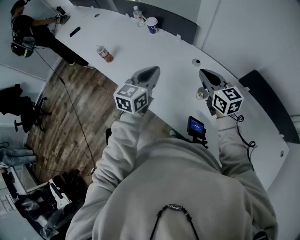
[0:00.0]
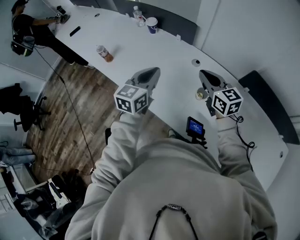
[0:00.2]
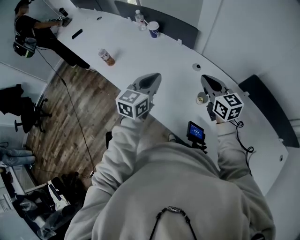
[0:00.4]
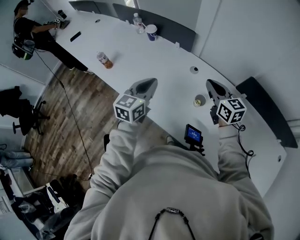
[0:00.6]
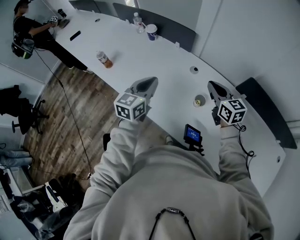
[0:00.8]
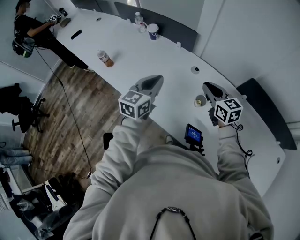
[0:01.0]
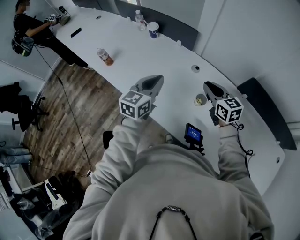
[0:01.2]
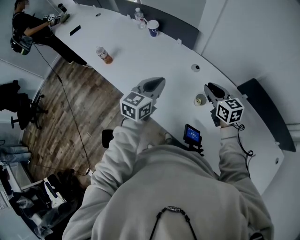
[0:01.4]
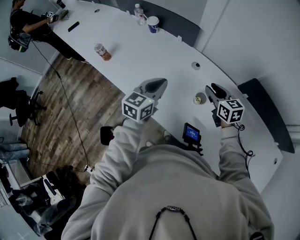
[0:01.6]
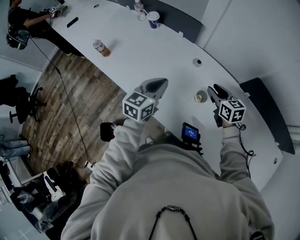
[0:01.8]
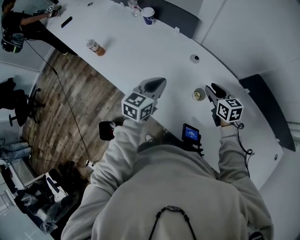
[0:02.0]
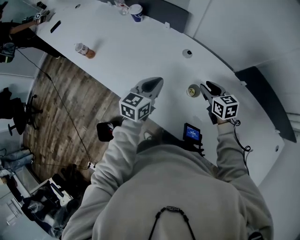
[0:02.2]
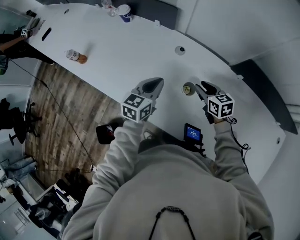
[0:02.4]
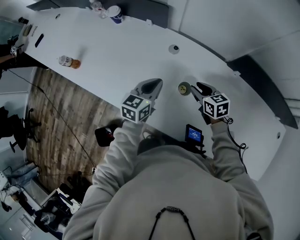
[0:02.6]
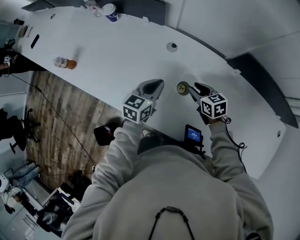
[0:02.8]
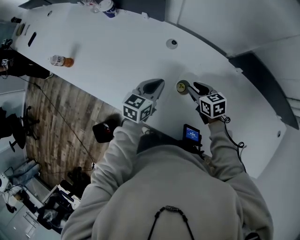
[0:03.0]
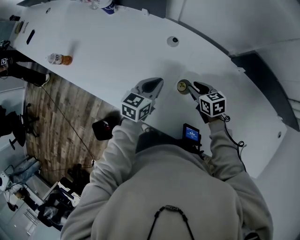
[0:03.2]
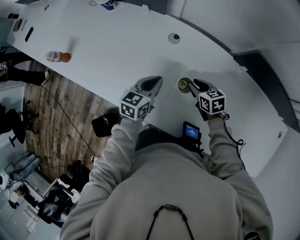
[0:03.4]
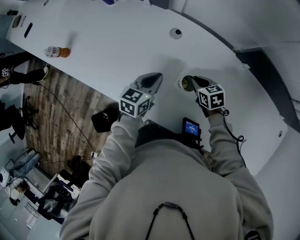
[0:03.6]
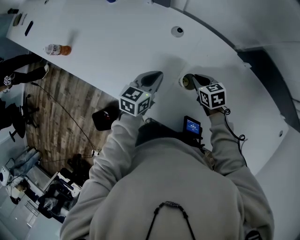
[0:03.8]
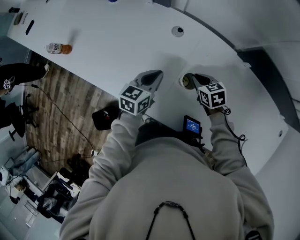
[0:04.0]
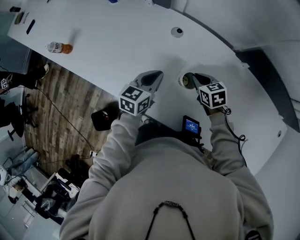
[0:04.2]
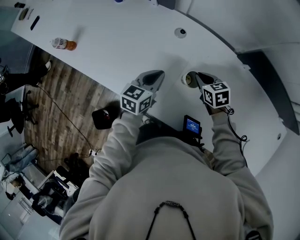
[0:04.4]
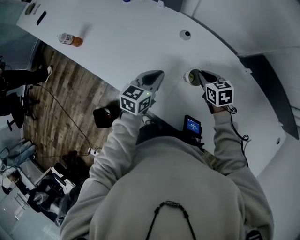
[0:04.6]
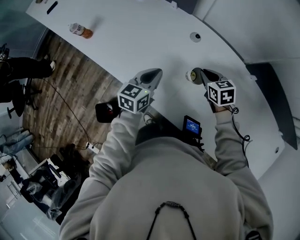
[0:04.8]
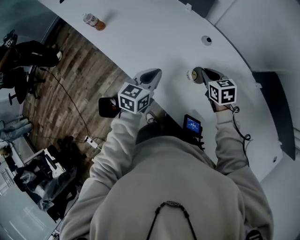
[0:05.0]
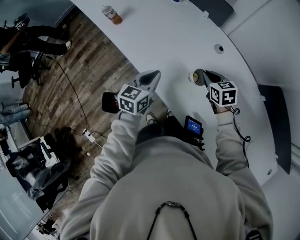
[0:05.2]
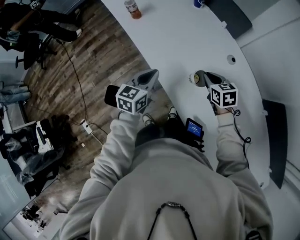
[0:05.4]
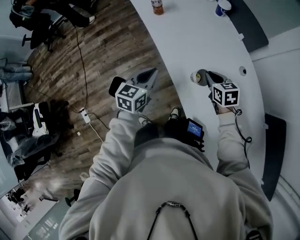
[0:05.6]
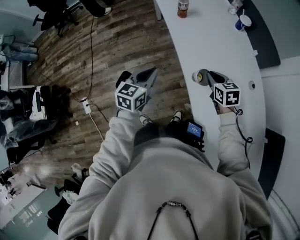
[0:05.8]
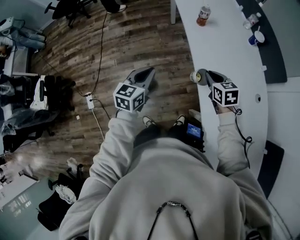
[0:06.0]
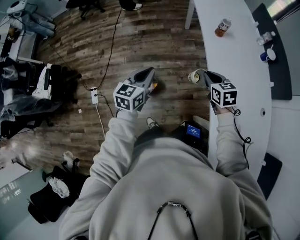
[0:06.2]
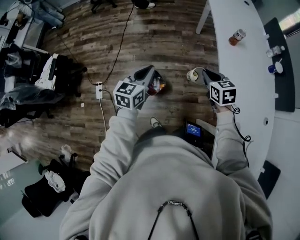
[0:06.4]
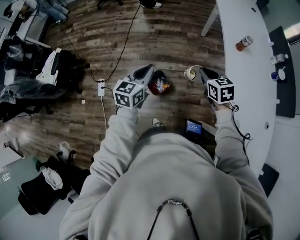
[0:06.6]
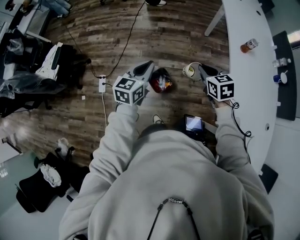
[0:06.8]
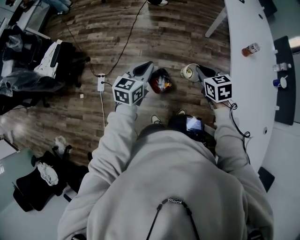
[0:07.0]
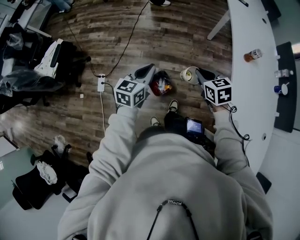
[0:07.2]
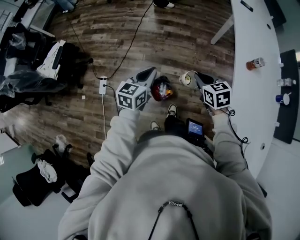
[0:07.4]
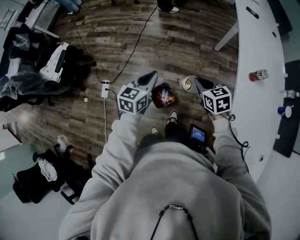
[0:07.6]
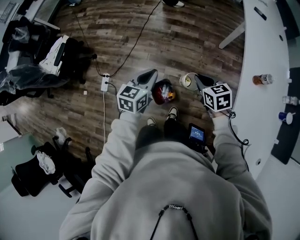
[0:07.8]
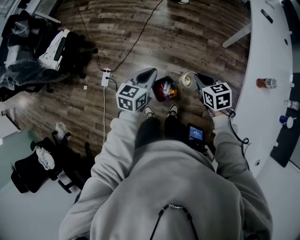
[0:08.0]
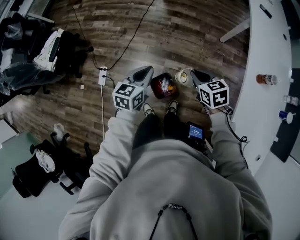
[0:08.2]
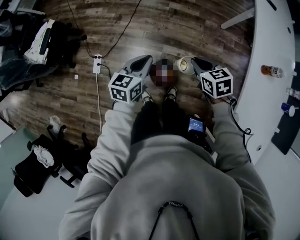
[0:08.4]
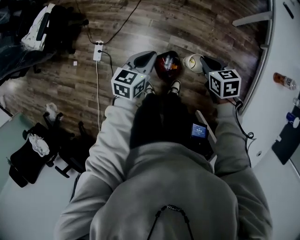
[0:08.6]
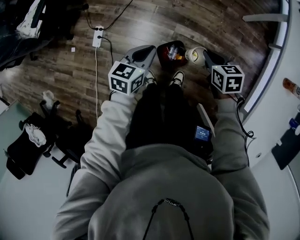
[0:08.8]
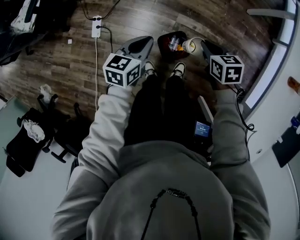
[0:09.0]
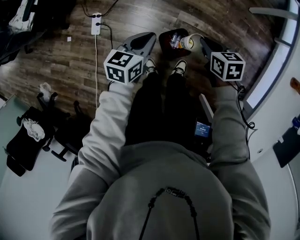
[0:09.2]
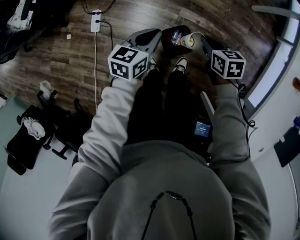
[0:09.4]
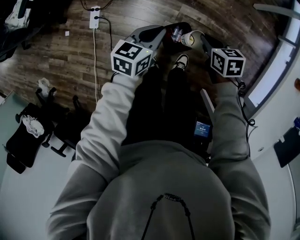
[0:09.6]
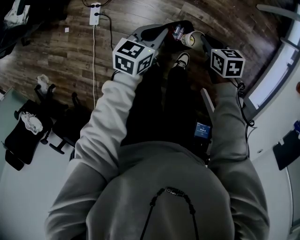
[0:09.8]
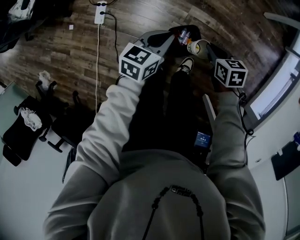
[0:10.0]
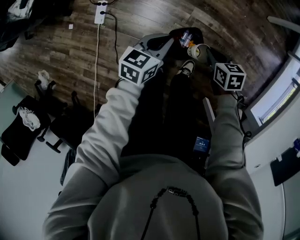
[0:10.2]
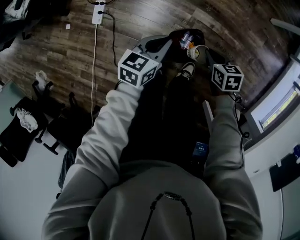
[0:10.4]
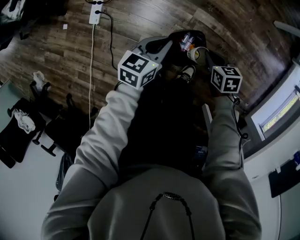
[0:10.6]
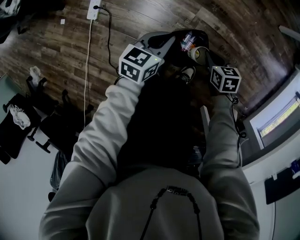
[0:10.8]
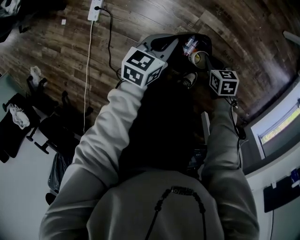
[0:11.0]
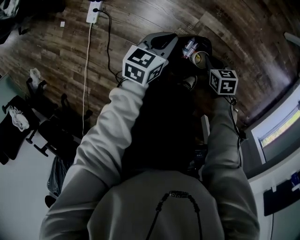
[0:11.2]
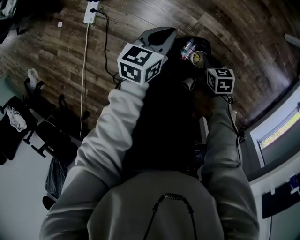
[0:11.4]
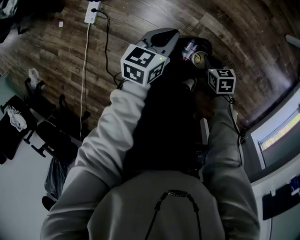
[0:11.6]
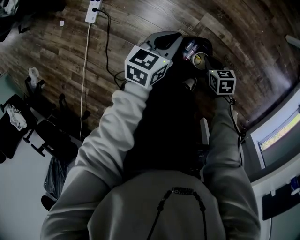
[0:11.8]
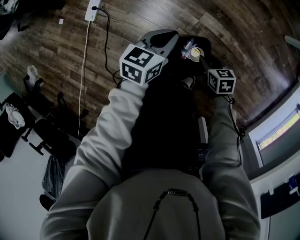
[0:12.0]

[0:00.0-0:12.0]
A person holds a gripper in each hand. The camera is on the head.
0:00.0 to 0:01.6: The left gripper moves downward, some 5 cm, while the right gripper heads downward and to the right, covering approximately 10 cm, and opens up.
0:01.6 to 0:03.0: The left gripper travels downward and to the right by about 15 cm. Meanwhile the right gripper travels downward by roughly 15 cm, and swivels roughly 20 degrees.
0:03.0 to 0:04.4: There are only small adjustments of the grippers.
0:04.4 to 0:06.0: Both grippers are carried about 50 cm. The left gripper swivels some 60 degrees, while the right gripper changes its angle by about 50 degrees.
0:06.0 to 0:07.6: The right gripper changes place by about 40 cm, and swivels approximately 30 degrees. Meanwhile the left gripper moves roughly 30 cm, and swivels about 20 degrees.
0:07.6 to 0:09.0: Both grippers travel together downward and to the left, about 30 cm.
0:09.0 to 0:10.4: Both grippers move downward, some 15 cm.
0:10.4 to 0:12.0: The two grippers go some 15 cm downward. The right gripper opens up.

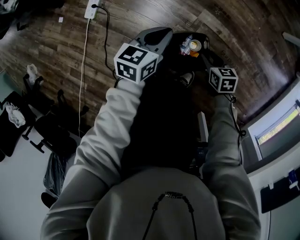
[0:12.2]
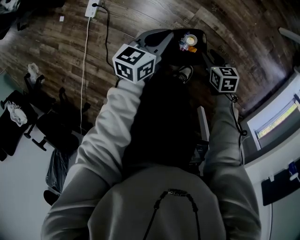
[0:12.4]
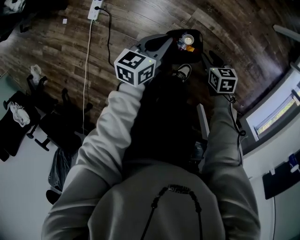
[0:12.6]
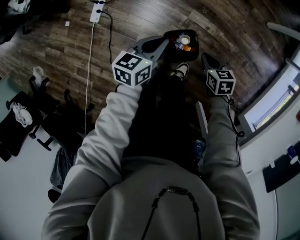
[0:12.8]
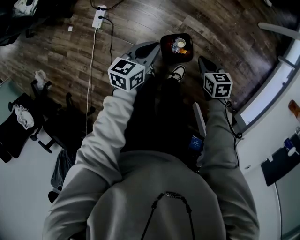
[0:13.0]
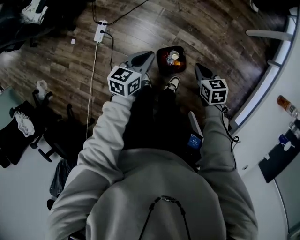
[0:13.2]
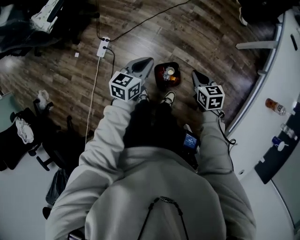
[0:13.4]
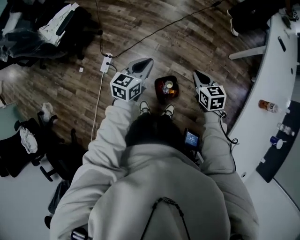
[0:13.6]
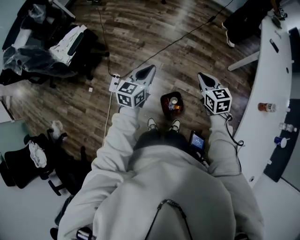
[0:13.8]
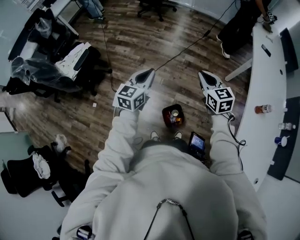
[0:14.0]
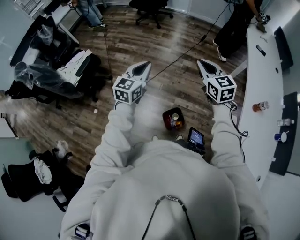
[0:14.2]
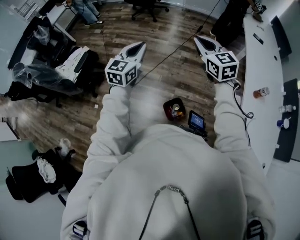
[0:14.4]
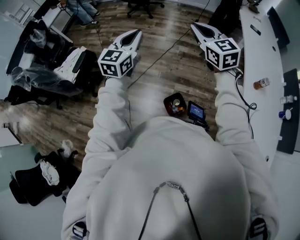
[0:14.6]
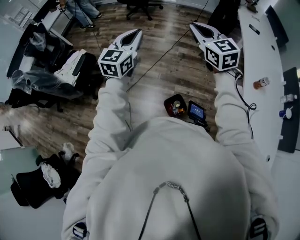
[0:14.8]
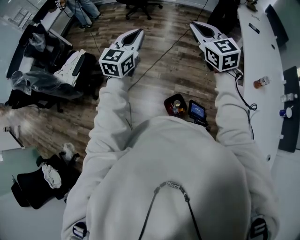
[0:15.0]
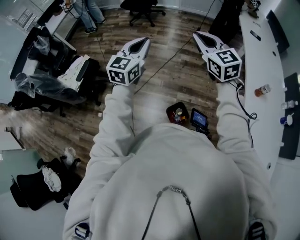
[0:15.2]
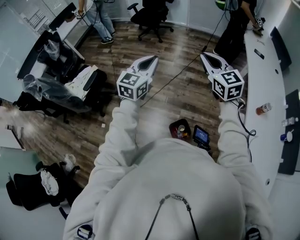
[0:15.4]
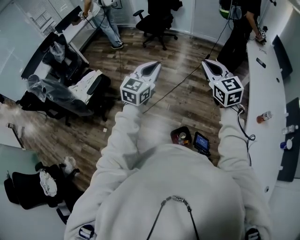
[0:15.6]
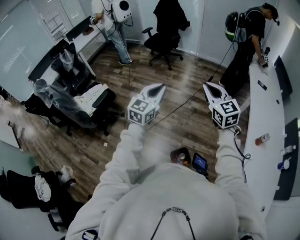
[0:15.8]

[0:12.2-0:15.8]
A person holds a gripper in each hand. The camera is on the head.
0:12.2 to 0:14.0: The two grippers go approximately 70 cm upward. The left gripper swivels roughly 30 degrees. The right gripper tilts its fingers roughly 30 degrees upward, and closes.
0:14.0 to 0:15.8: Both grippers move upward, some 15 cm.

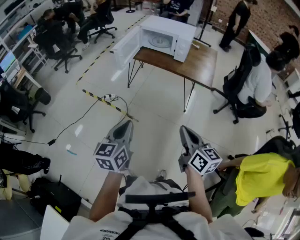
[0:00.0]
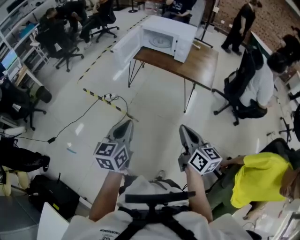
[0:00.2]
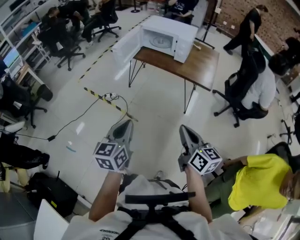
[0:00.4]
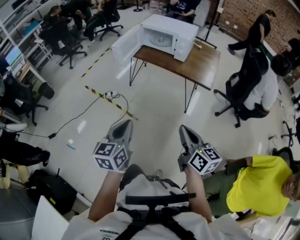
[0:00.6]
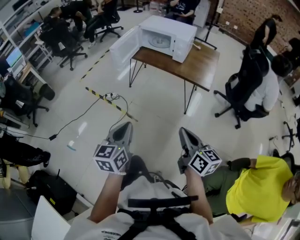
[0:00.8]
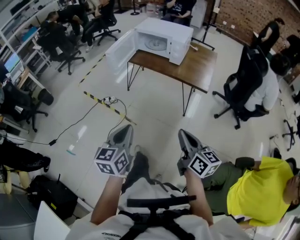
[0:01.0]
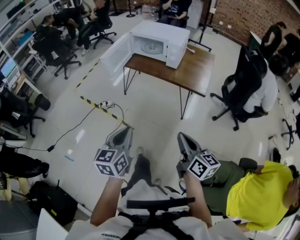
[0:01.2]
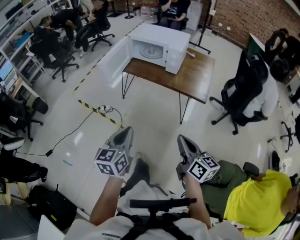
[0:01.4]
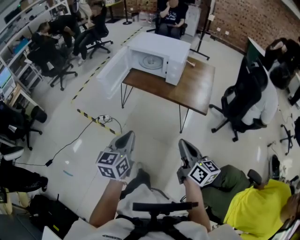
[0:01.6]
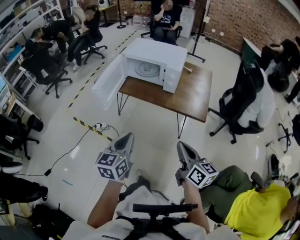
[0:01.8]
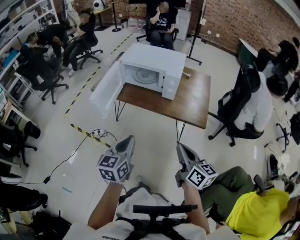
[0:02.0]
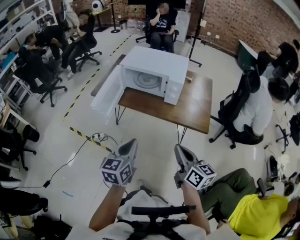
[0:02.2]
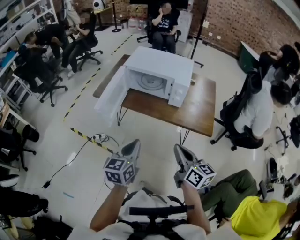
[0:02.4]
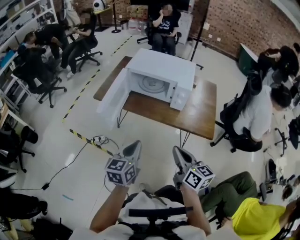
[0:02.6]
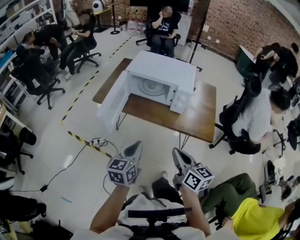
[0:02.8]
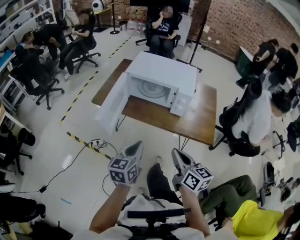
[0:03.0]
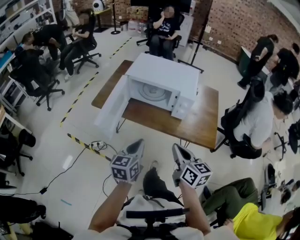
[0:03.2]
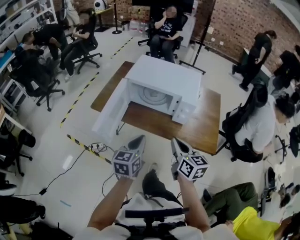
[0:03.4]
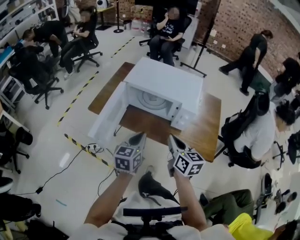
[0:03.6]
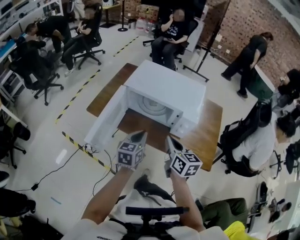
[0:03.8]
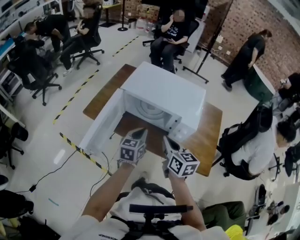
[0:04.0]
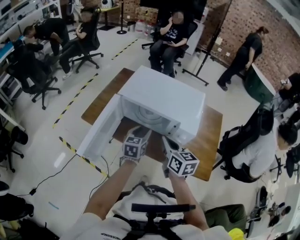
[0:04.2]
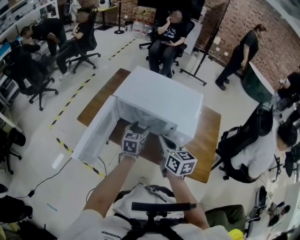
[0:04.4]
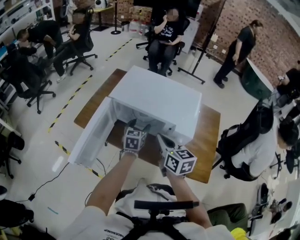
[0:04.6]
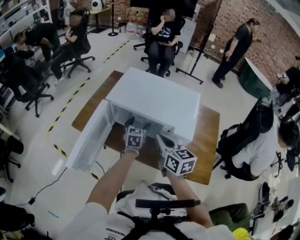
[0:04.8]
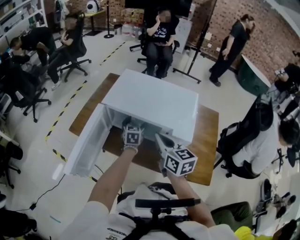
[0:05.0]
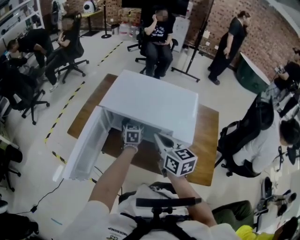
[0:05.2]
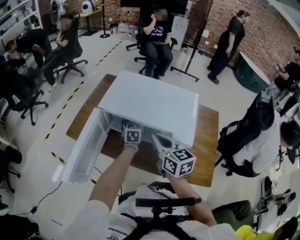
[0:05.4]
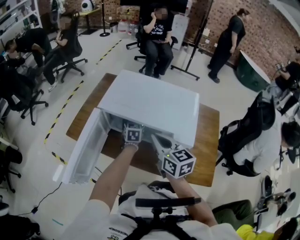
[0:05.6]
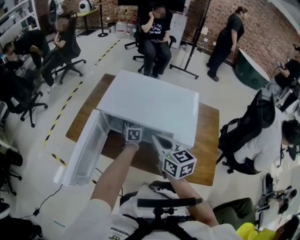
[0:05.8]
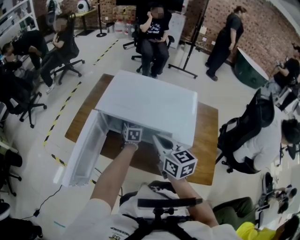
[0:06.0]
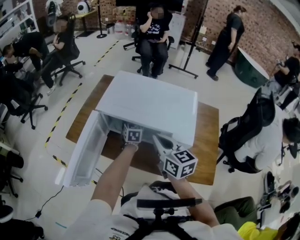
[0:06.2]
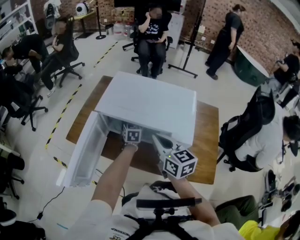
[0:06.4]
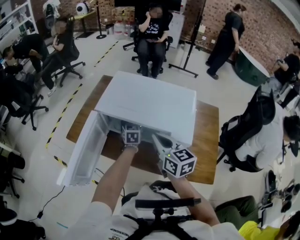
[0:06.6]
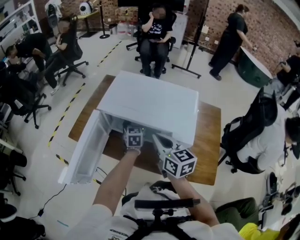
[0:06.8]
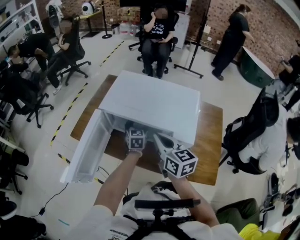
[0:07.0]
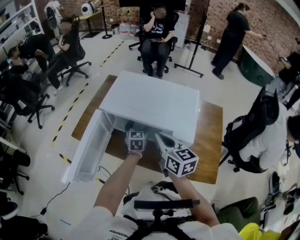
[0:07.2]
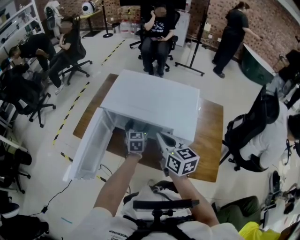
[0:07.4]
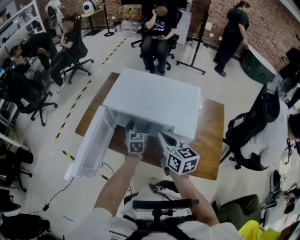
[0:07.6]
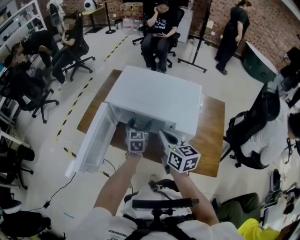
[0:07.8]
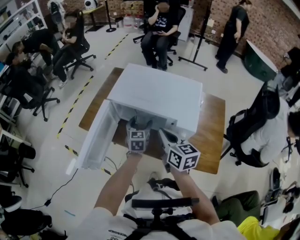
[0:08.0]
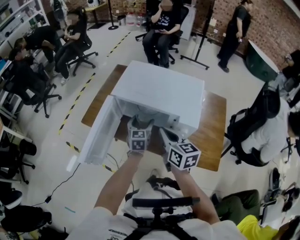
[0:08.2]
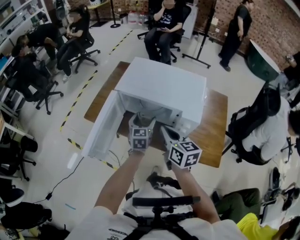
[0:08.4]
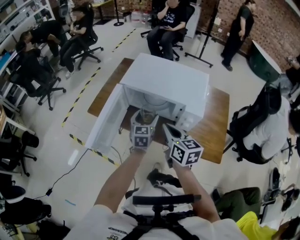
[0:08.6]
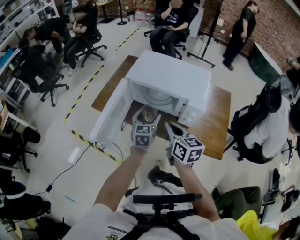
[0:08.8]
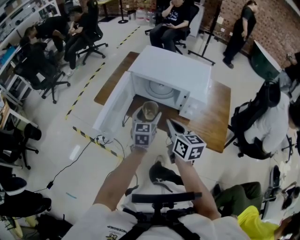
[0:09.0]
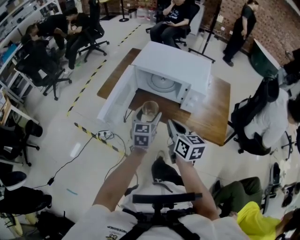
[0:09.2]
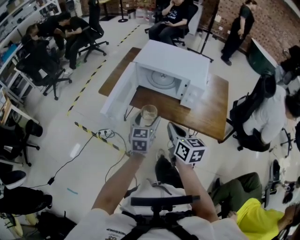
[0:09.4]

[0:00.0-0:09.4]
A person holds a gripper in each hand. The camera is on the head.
0:00.0 to 0:01.6: The two grippers go some 20 cm forward and to the right.
0:01.6 to 0:03.2: The right gripper is displaced forward and to the left by some 30 cm, while the left gripper moves forward, some 25 cm.
0:03.2 to 0:04.8: The left gripper moves forward and downward, approximately 40 cm, and opens up; the right gripper shifts about 30 cm forward.
0:04.8 to 0:06.2: The left gripper shifts roughly 10 cm forward.
0:06.2 to 0:07.8: The left gripper shifts roughly 10 cm backward.
0:07.8 to 0:09.4: Both grippers travel together backward, some 25 cm.
